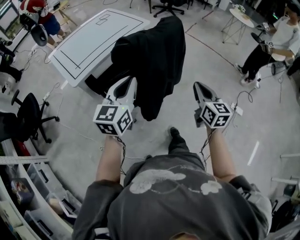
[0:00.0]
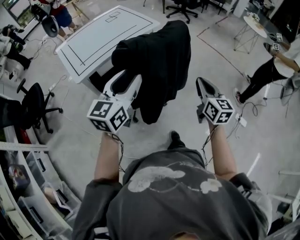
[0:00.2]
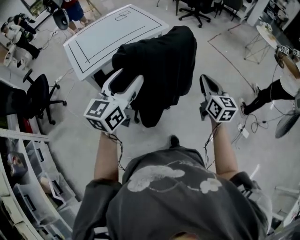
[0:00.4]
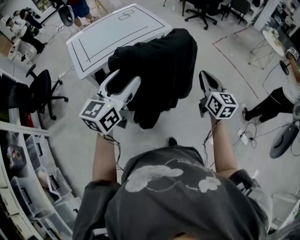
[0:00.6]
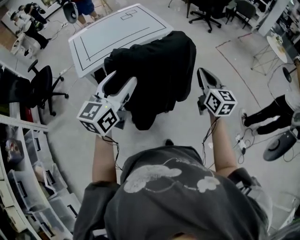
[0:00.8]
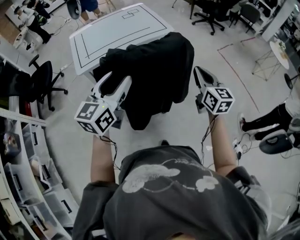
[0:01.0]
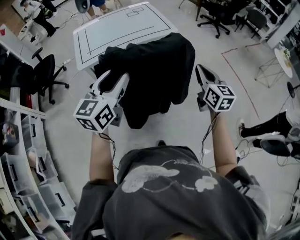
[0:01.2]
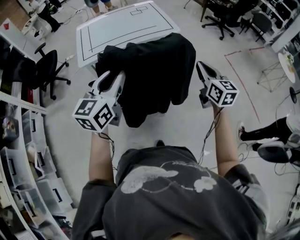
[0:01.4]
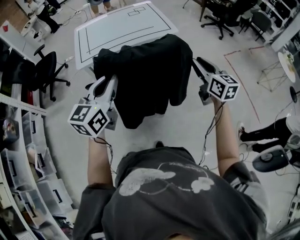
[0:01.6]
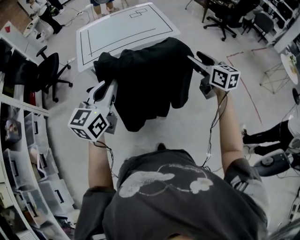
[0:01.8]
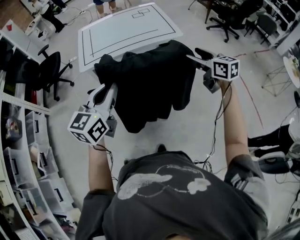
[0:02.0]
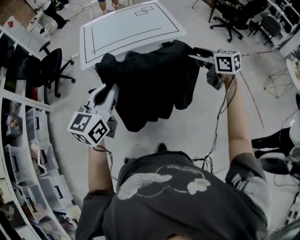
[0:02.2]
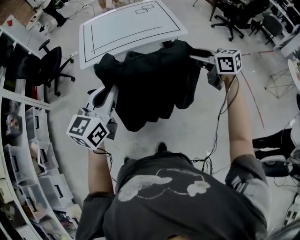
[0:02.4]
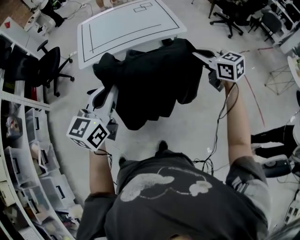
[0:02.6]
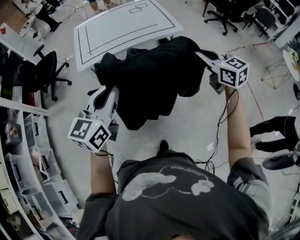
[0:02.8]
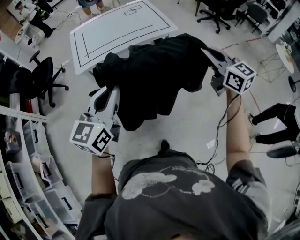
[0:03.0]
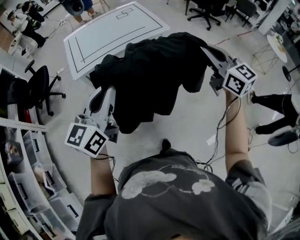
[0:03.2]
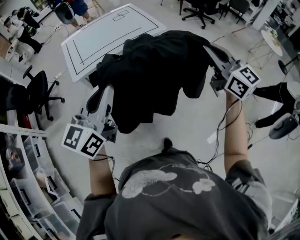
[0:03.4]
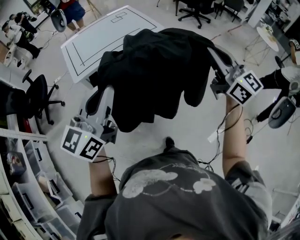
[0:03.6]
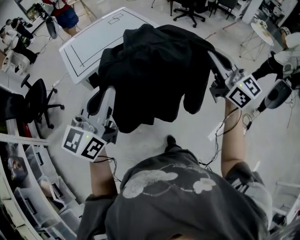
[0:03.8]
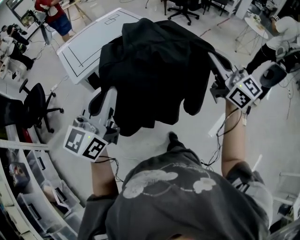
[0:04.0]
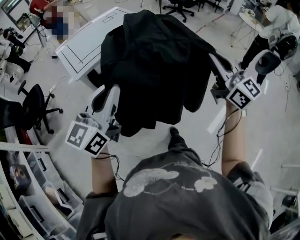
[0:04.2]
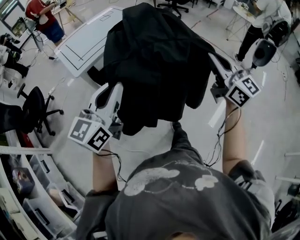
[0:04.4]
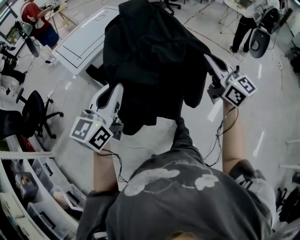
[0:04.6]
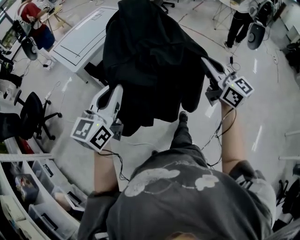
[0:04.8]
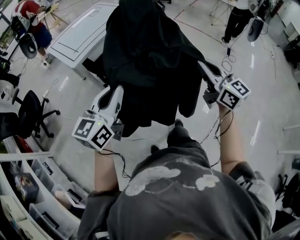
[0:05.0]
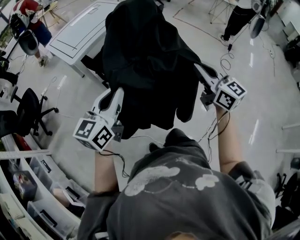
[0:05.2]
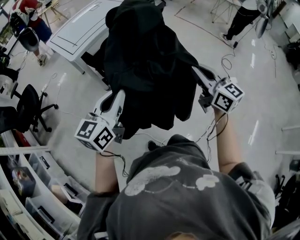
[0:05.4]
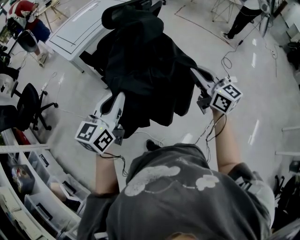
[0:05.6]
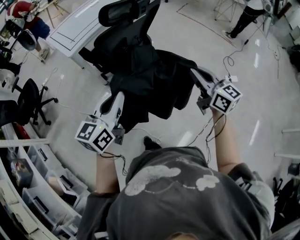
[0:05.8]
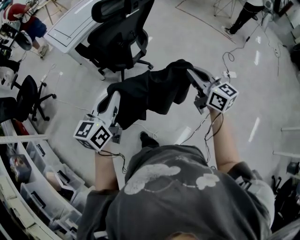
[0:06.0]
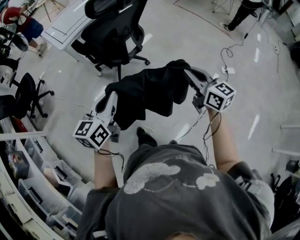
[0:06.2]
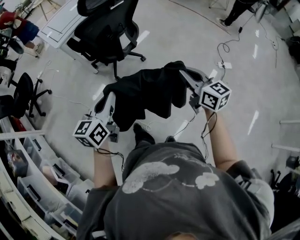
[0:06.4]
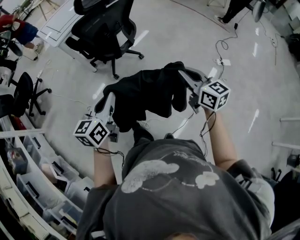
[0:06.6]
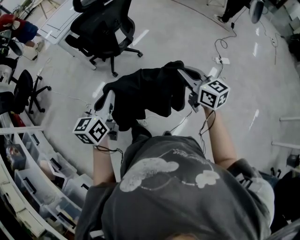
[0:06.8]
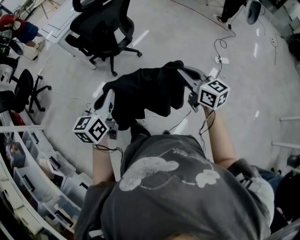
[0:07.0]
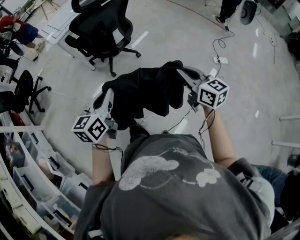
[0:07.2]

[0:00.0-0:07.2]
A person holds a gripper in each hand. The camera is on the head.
0:00.0 to 0:01.4: The left gripper ends up approximately 10 cm from where it was, changes its angle by roughly 30 degrees, and opens, then closes again, while the right gripper shifts by about 30 cm, and turns by approximately 30 degrees.
0:01.4 to 0:02.8: The right gripper moves forward, roughly 5 cm, changes its angle by approximately 30 degrees, and opens, then closes once more.
0:02.8 to 0:04.4: The right gripper moves some 40 cm, and turns by about 40 degrees, while the left gripper ends up about 25 cm from where it was, and swivels some 30 degrees.
0:04.4 to 0:05.8: Both grippers move backward and downward, approximately 20 cm.
0:05.8 to 0:07.2: The left gripper heads backward, to the right and downward, covering some 20 cm. Meanwhile the right gripper heads backward and to the right, covering about 20 cm.

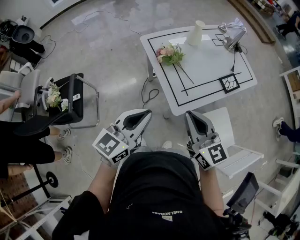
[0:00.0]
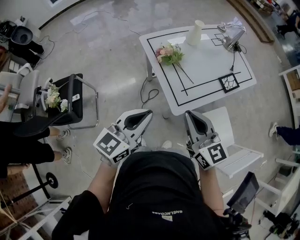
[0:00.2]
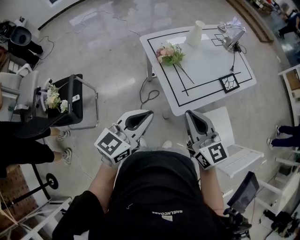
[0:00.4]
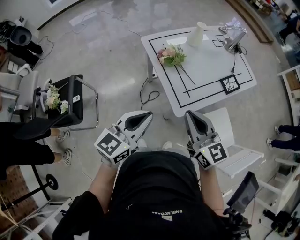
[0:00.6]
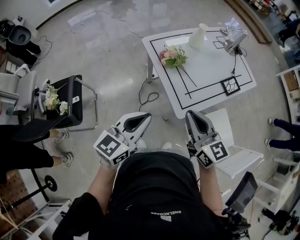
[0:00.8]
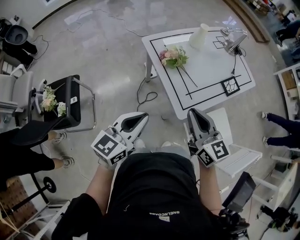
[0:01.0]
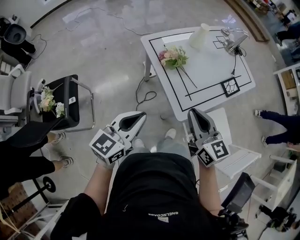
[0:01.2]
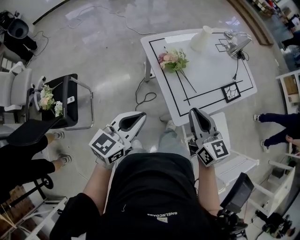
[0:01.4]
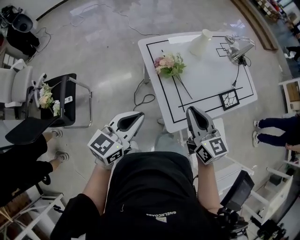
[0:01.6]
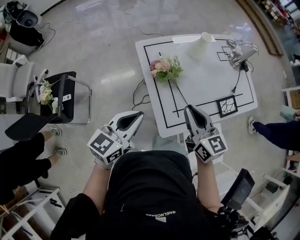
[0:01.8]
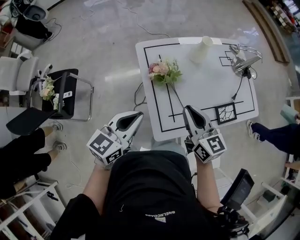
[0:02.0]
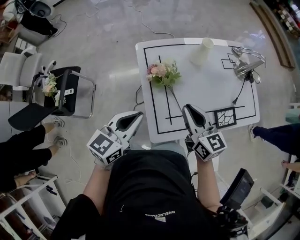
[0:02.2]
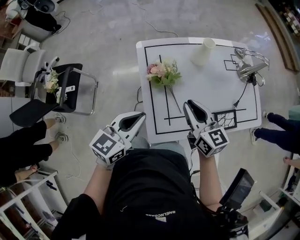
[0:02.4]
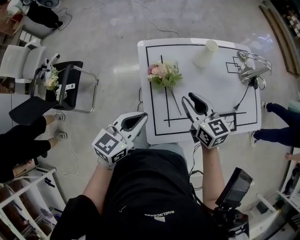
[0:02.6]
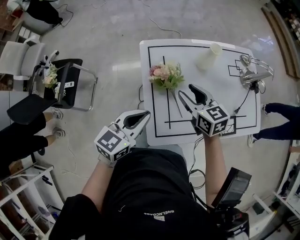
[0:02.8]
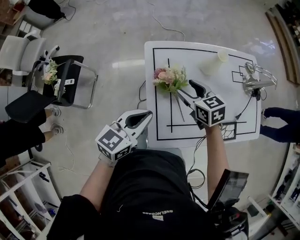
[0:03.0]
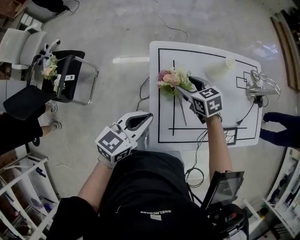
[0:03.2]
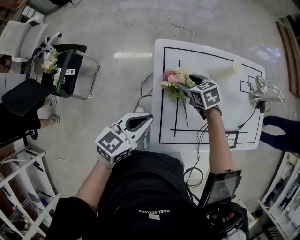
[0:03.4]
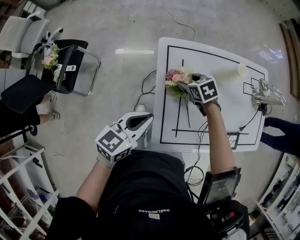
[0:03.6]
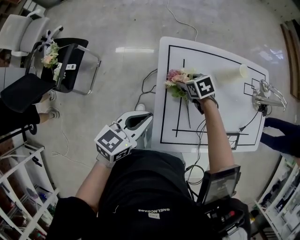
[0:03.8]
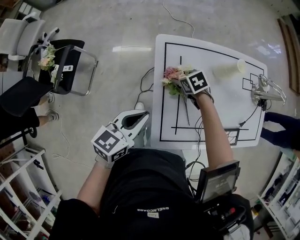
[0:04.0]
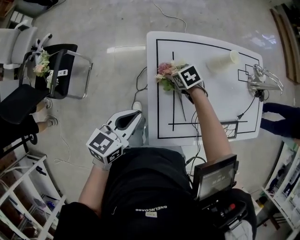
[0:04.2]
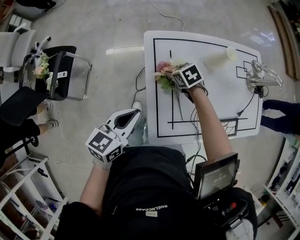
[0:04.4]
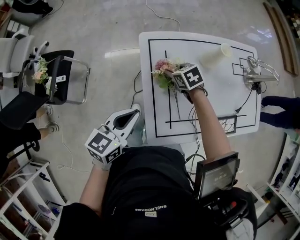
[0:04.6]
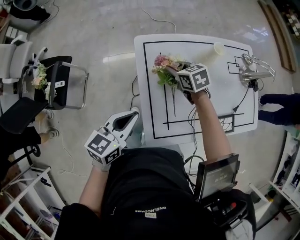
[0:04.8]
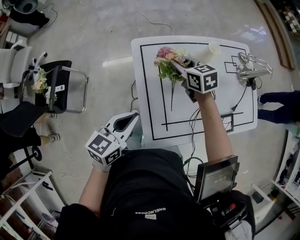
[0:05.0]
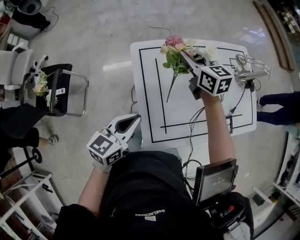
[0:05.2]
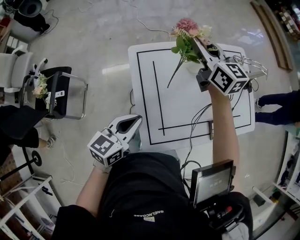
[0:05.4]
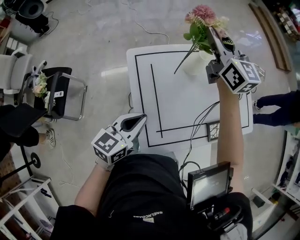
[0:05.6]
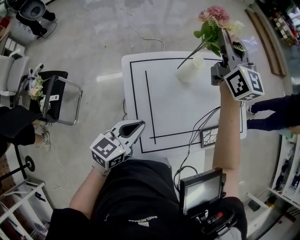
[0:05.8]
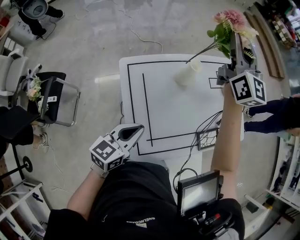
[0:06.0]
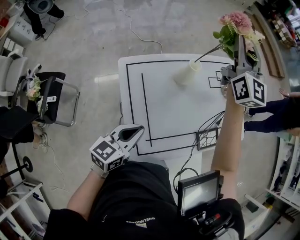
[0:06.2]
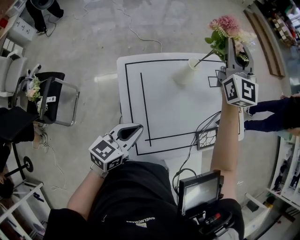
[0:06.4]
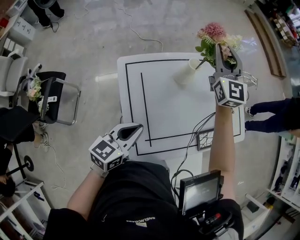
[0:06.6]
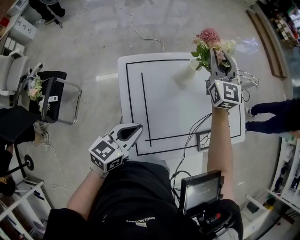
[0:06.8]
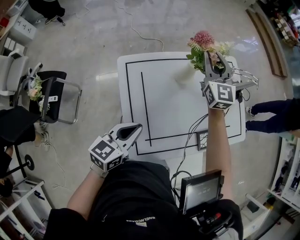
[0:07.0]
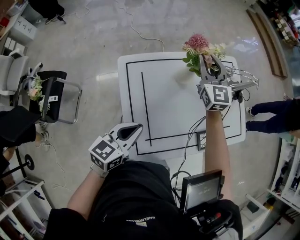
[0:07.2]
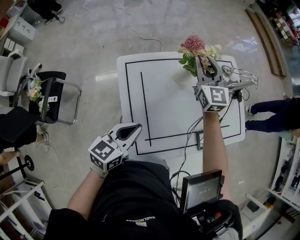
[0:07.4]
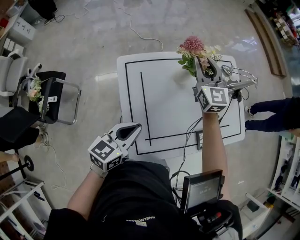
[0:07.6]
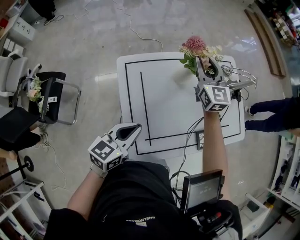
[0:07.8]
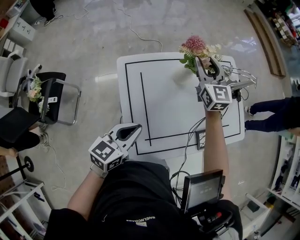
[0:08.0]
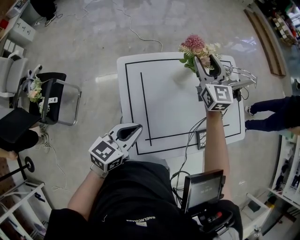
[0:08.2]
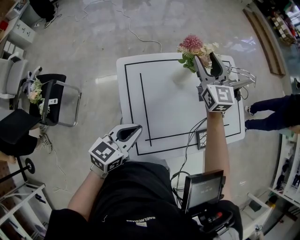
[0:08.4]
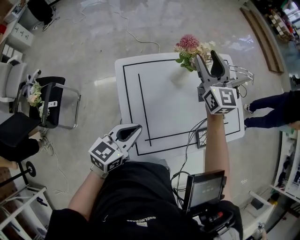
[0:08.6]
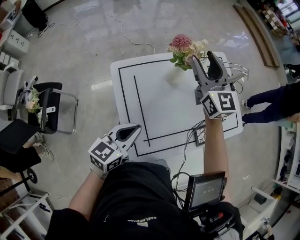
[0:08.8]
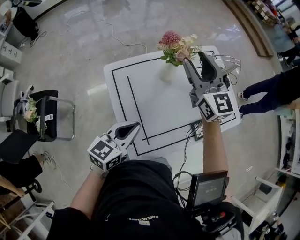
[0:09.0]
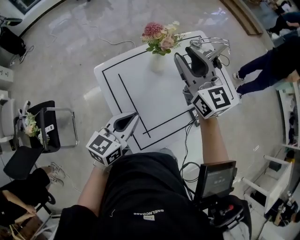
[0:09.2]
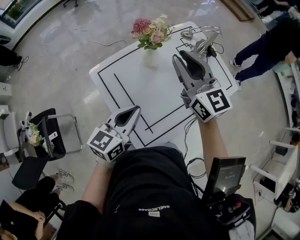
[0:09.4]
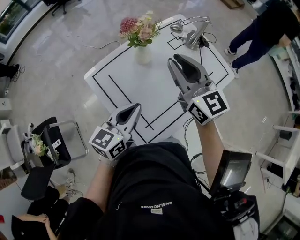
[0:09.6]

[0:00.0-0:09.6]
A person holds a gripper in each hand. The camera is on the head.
0:00.0 to 0:01.6: The grippers both shift forward by some 10 cm.
0:01.6 to 0:03.2: The left gripper moves forward and to the right, some 15 cm. Meanwhile the right gripper moves forward and downward, some 30 cm, tilts its fingers some 30 degrees downward, and opens its fingers.
0:03.2 to 0:04.8: The right gripper reaches about 10 cm downward, then returns, and closes its fingers.
0:04.8 to 0:06.4: The left gripper moves roughly 10 cm. Meanwhile the right gripper goes some 35 cm upward, and tilts its fingers roughly 60 degrees upward.
0:06.4 to 0:08.0: The right gripper is displaced downward by some 15 cm.
0:08.0 to 0:09.6: The right gripper goes roughly 20 cm backward, upward and to the right; the left gripper moves upward and to the right, approximately 10 cm.

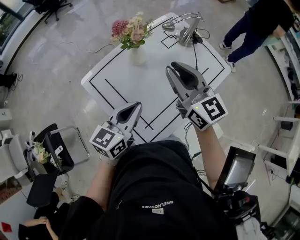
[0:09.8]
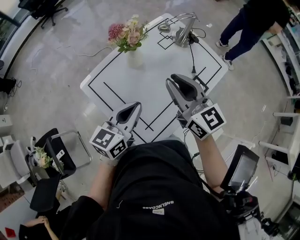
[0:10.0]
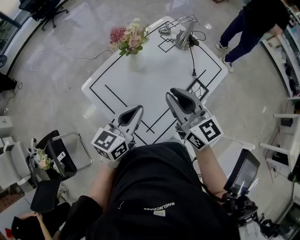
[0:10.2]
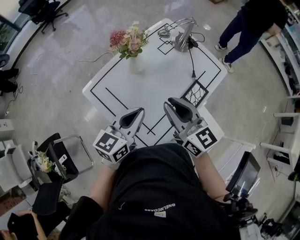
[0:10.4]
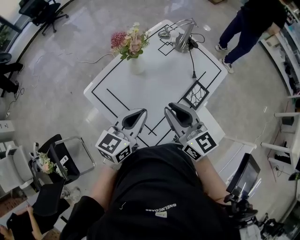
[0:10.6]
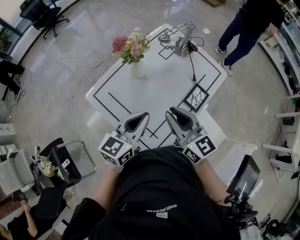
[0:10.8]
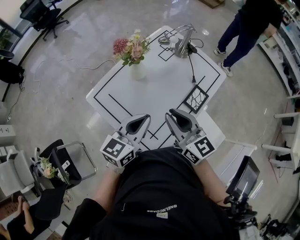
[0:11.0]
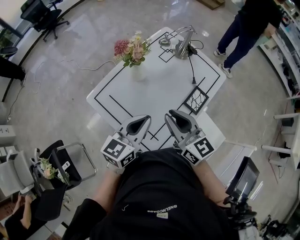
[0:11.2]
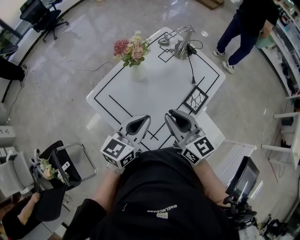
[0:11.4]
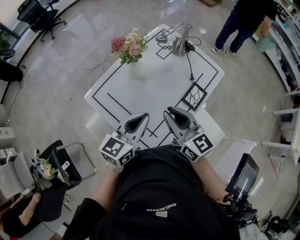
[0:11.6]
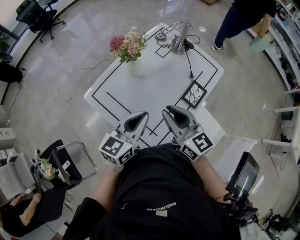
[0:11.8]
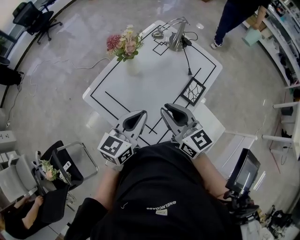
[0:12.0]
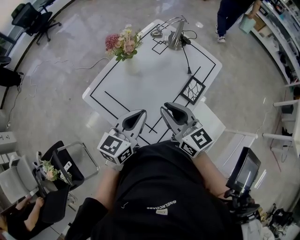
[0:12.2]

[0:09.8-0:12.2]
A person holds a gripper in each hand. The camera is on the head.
0:09.8 to 0:11.0: The right gripper goes about 10 cm backward.
0:11.0 to 0:12.2: The two grippers keep their place.

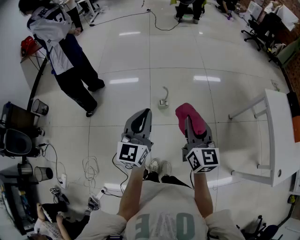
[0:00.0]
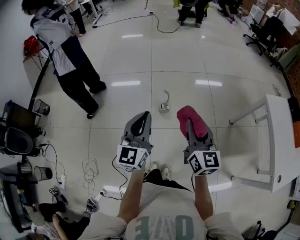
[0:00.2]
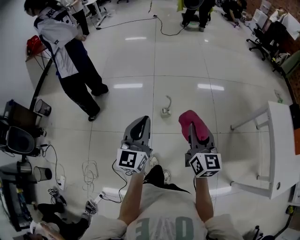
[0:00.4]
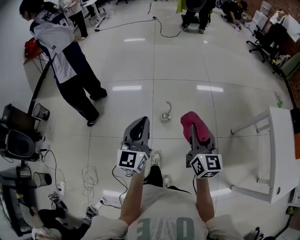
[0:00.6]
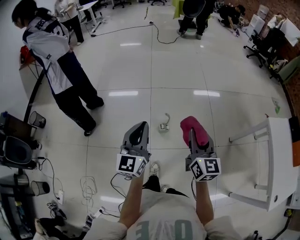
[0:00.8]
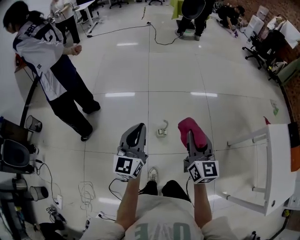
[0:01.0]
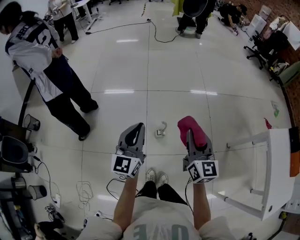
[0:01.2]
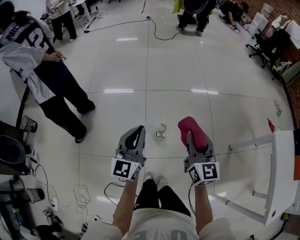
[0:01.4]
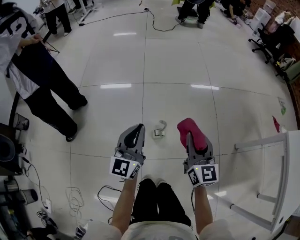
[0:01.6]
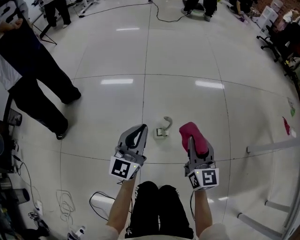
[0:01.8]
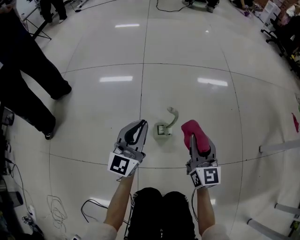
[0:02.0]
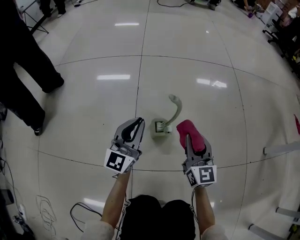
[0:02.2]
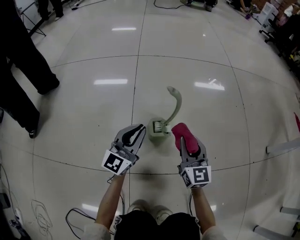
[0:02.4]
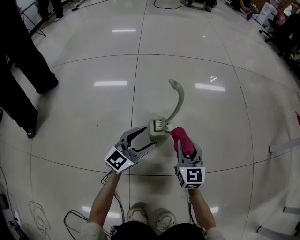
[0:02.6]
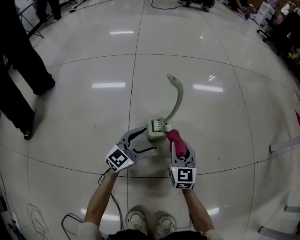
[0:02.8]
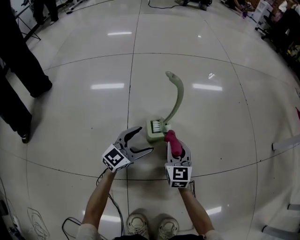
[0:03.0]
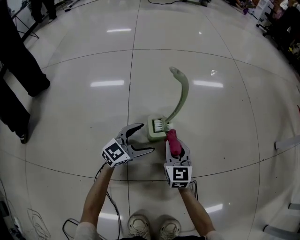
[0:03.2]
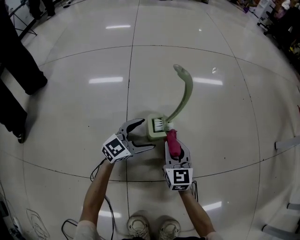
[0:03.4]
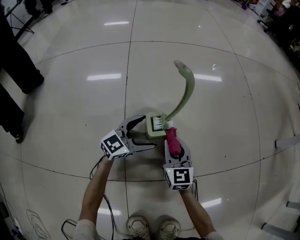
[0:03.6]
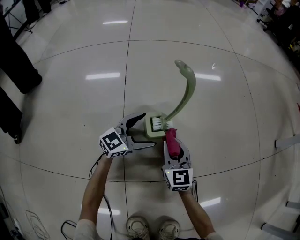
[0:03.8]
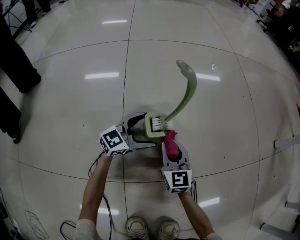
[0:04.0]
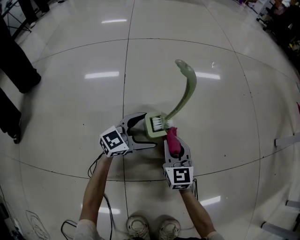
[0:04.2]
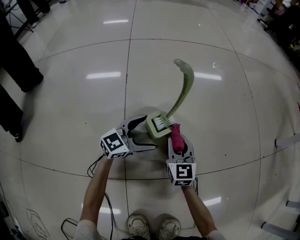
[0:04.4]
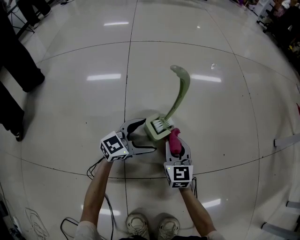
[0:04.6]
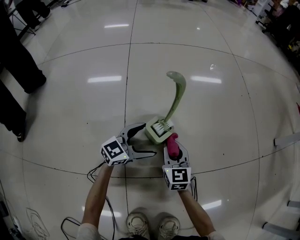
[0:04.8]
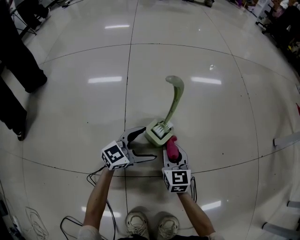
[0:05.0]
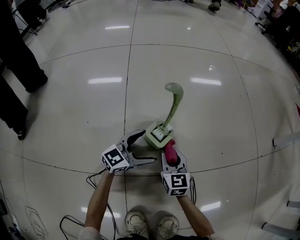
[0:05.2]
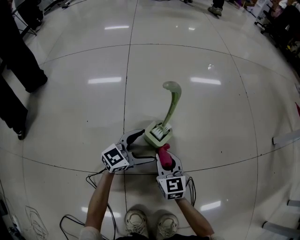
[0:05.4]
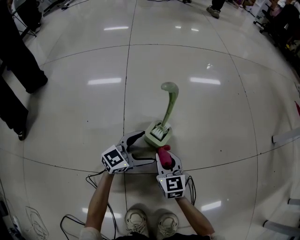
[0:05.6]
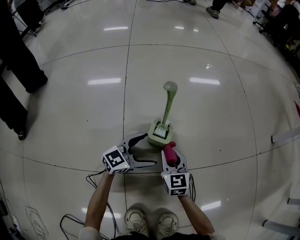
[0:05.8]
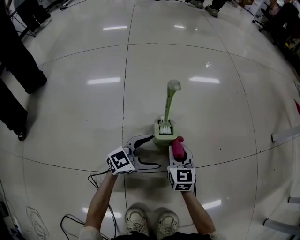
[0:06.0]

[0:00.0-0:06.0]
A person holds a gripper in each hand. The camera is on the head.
0:00.0 to 0:01.6: The two grippers go some 40 cm forward and downward.
0:01.6 to 0:03.0: Both grippers travel together downward, approximately 70 cm. The left gripper rotates approximately 40 degrees, and opens.
0:03.0 to 0:04.4: The grippers make only small movements.
0:04.4 to 0:06.0: The left gripper heads to the right and backward, covering some 10 cm; the right gripper heads to the right, covering roughly 5 cm.
